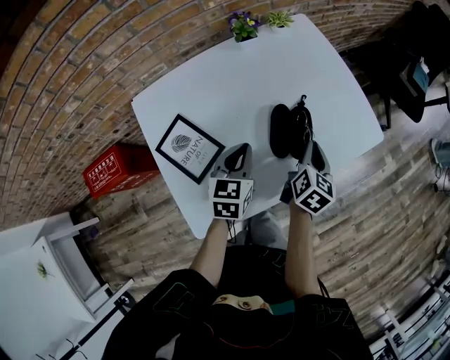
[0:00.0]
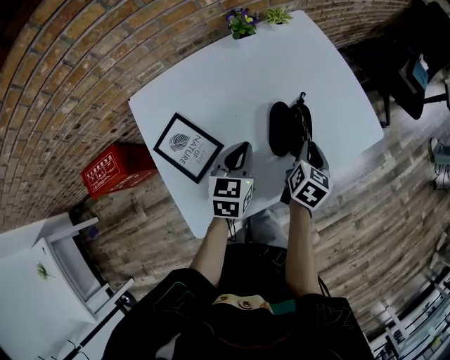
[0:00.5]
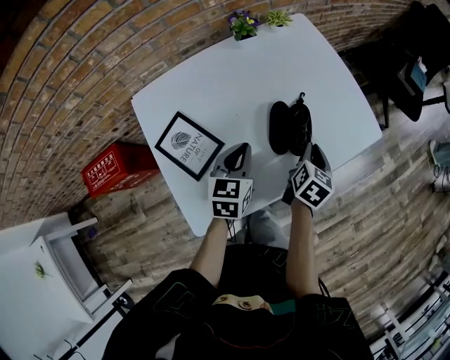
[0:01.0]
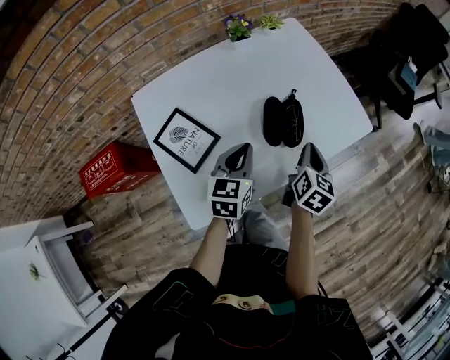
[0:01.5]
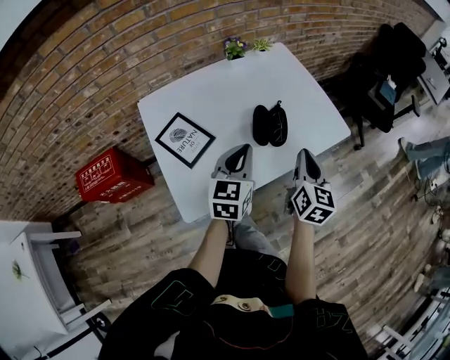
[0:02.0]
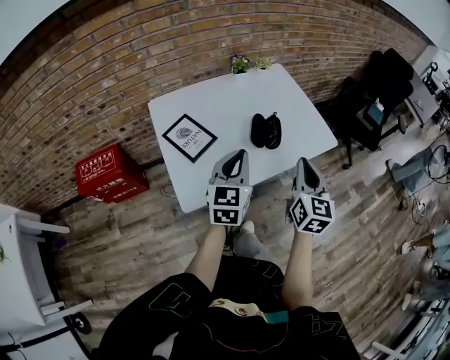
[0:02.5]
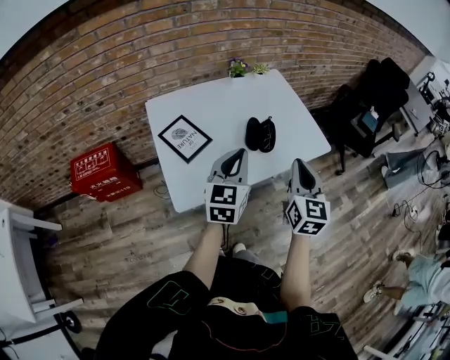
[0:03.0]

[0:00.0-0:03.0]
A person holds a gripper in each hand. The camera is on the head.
0:00.0 to 0:01.5: The left gripper changes place by about 5 cm. Meanwhile the right gripper ends up approximately 5 cm from where it was.
0:01.5 to 0:03.0: The grippers both shift upward and backward by some 20 cm. The left gripper turns by about 20 degrees. Meanwhile the right gripper turns by some 40 degrees.

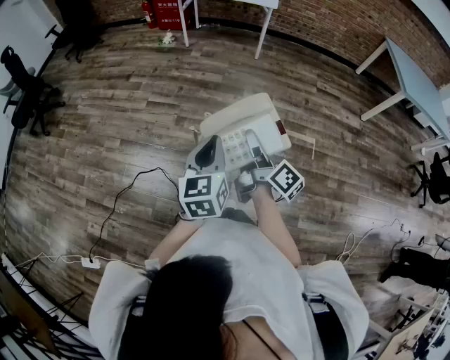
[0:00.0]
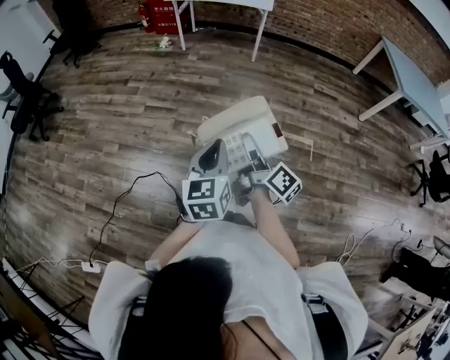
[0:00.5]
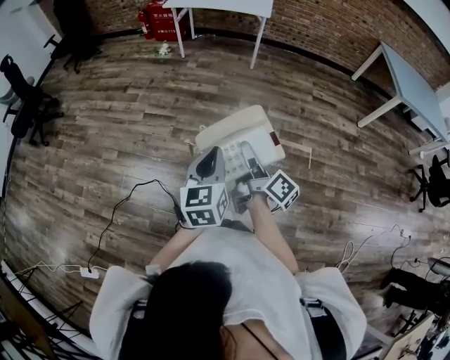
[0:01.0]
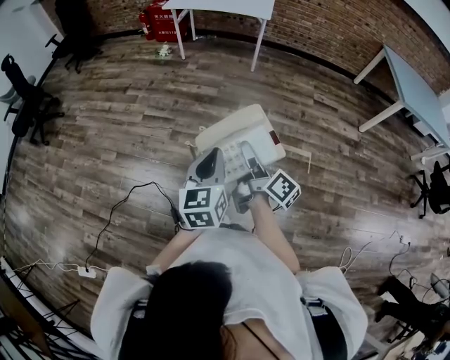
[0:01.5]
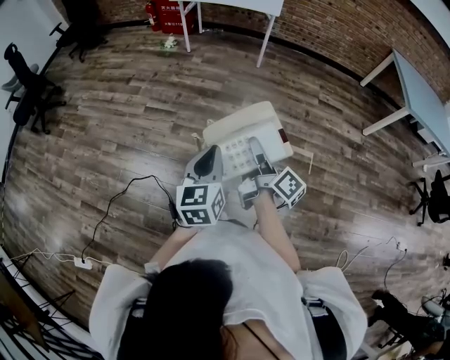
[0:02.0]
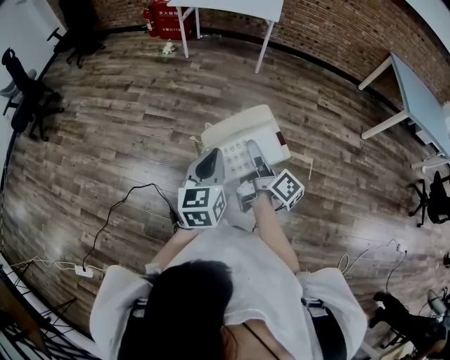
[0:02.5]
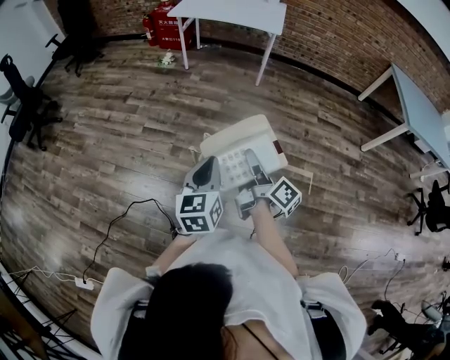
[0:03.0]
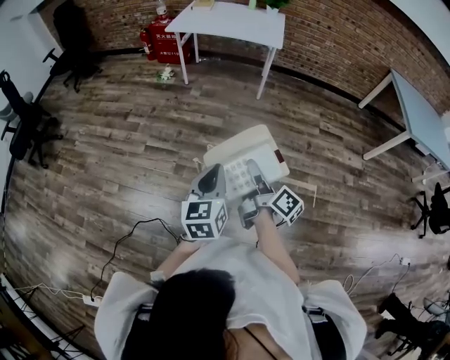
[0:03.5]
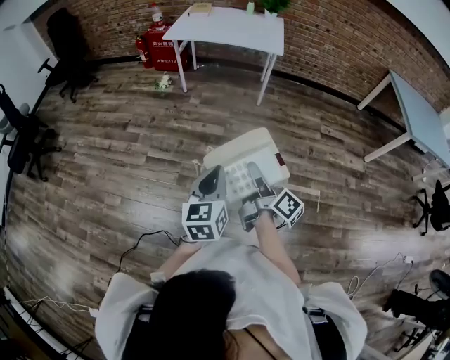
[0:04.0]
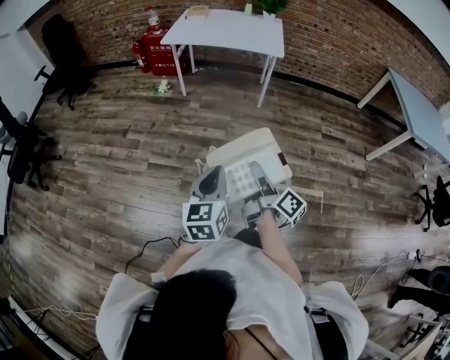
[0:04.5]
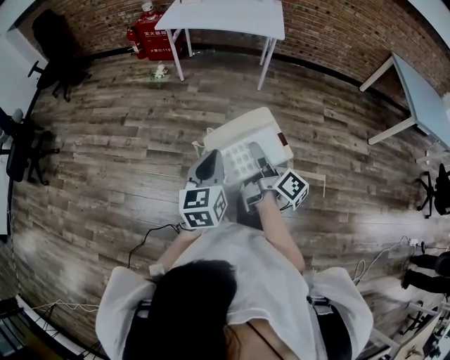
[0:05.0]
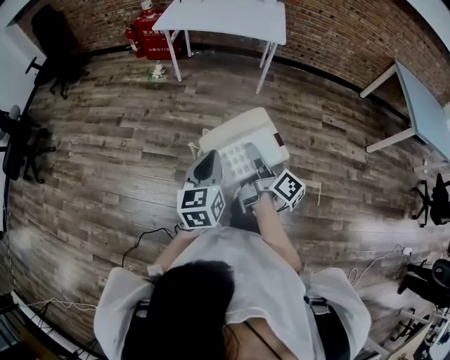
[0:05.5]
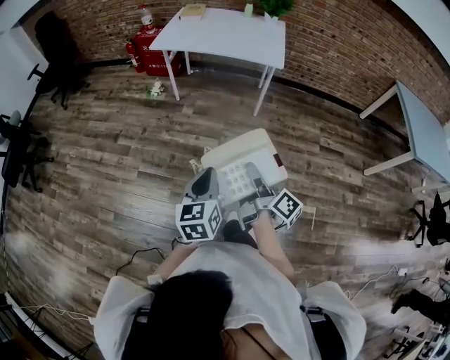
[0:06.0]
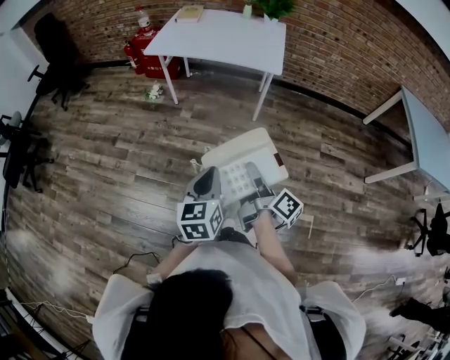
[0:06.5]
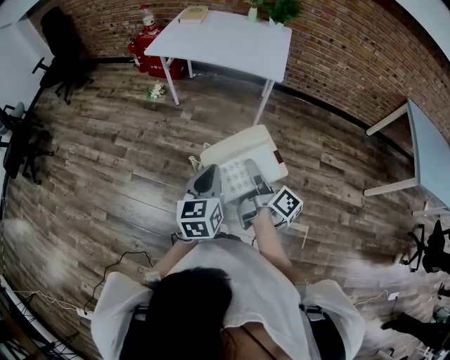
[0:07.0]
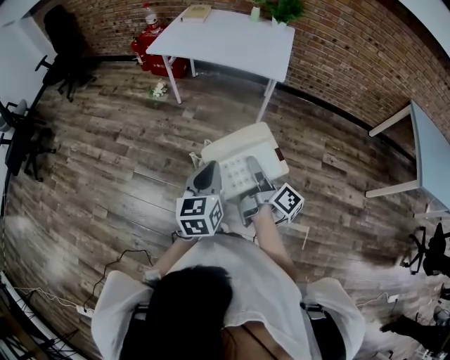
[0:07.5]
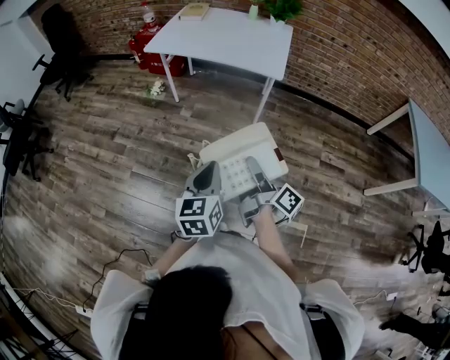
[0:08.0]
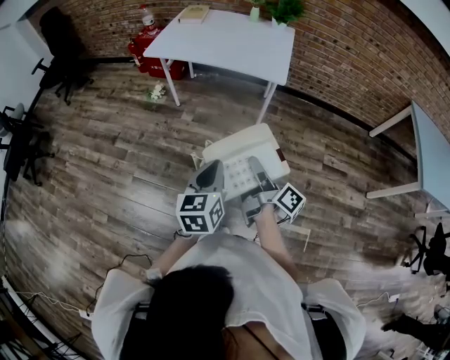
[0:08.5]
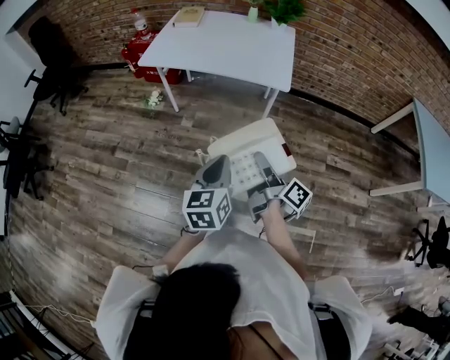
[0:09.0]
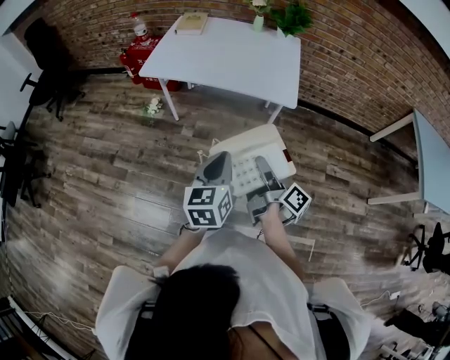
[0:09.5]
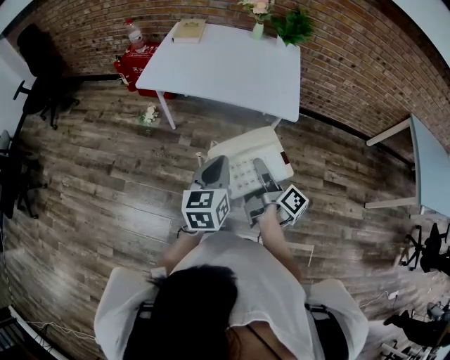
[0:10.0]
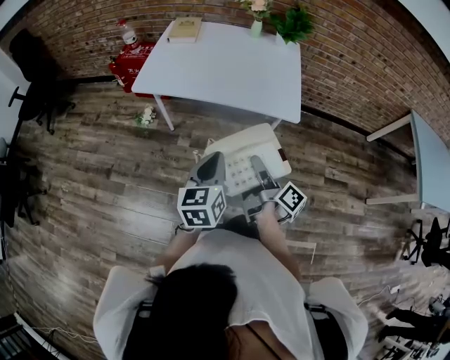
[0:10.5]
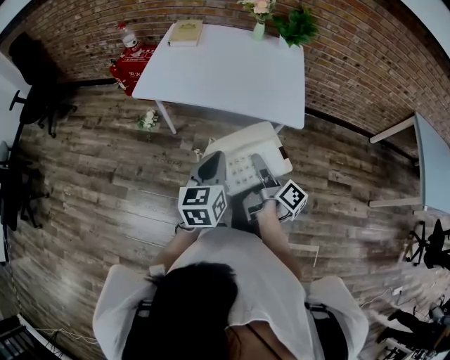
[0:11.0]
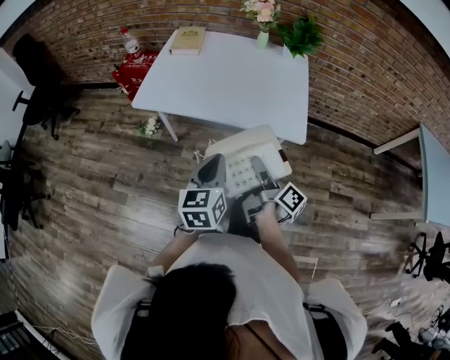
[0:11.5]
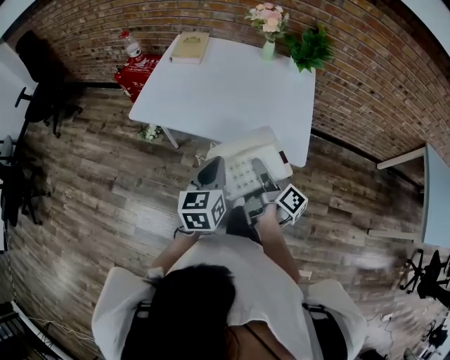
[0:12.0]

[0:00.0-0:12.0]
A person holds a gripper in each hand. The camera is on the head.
0:00.0 to 0:02.0: The left gripper ends up roughly 10 cm from where it was.
0:02.0 to 0:04.0: The left gripper ends up roughly 25 cm from where it was.
0:04.0 to 0:06.0: The left gripper shifts by roughly 20 cm.
0:06.0 to 0:08.0: The left gripper moves roughly 15 cm.
0:08.0 to 0:10.0: The left gripper ends up some 30 cm from where it was.
0:10.0 to 0:12.0: The left gripper ends up roughly 20 cm from where it was.

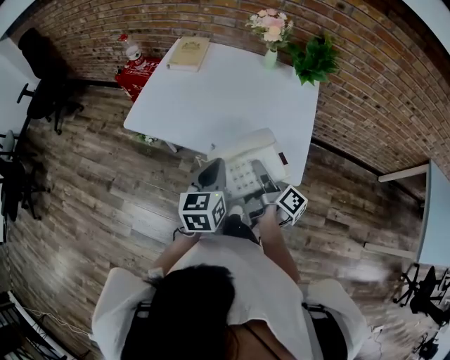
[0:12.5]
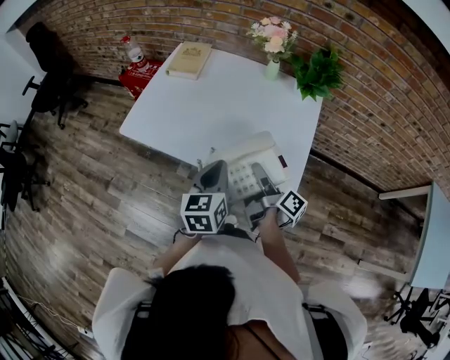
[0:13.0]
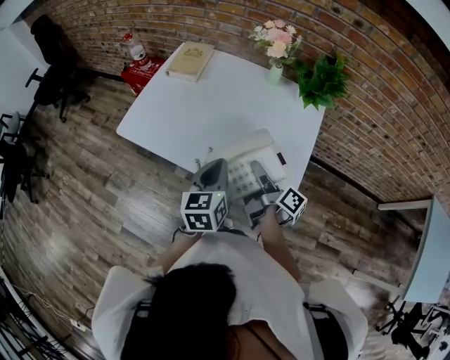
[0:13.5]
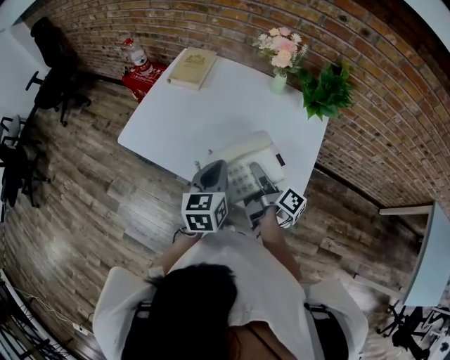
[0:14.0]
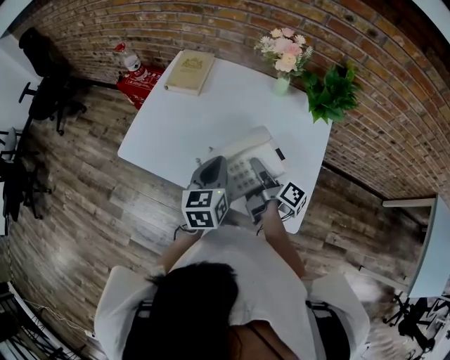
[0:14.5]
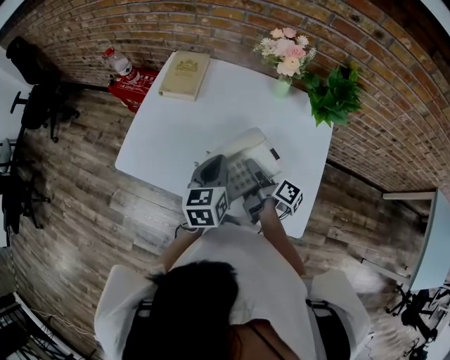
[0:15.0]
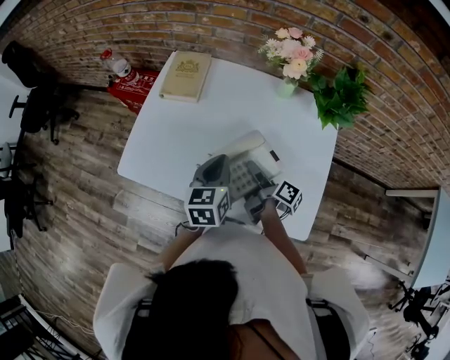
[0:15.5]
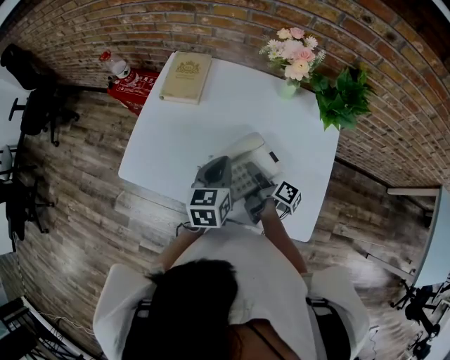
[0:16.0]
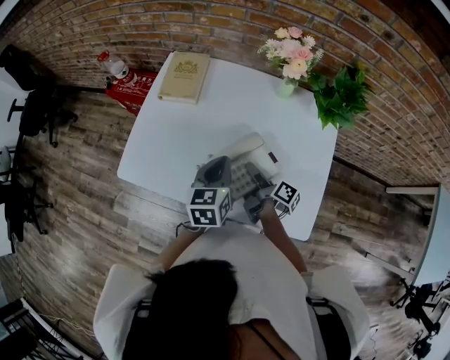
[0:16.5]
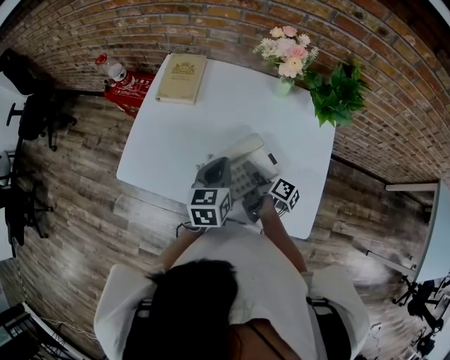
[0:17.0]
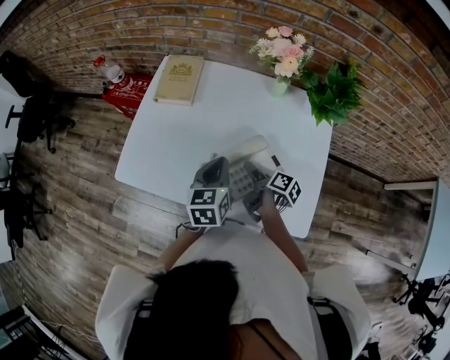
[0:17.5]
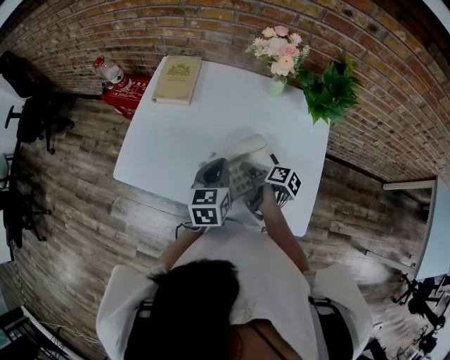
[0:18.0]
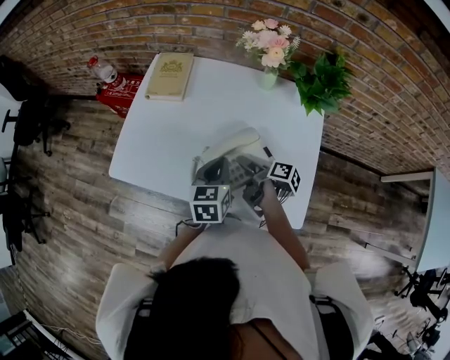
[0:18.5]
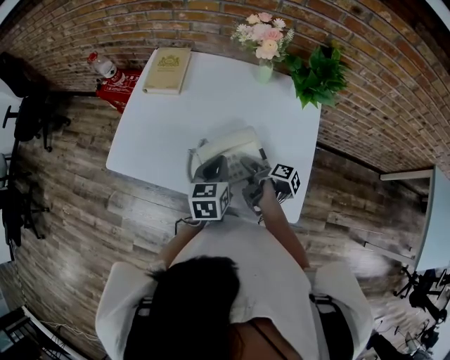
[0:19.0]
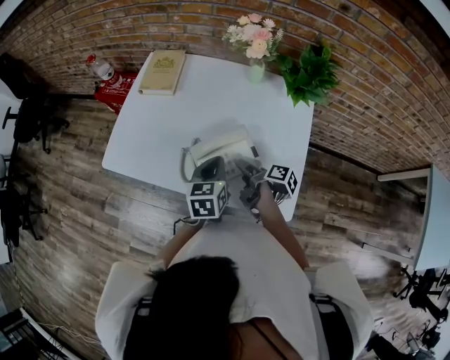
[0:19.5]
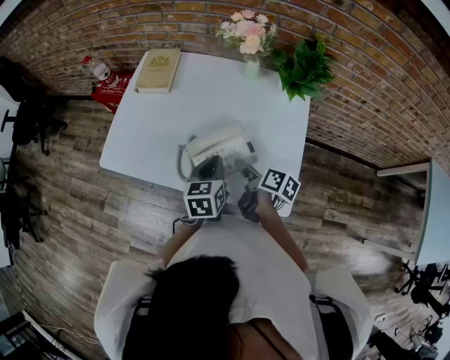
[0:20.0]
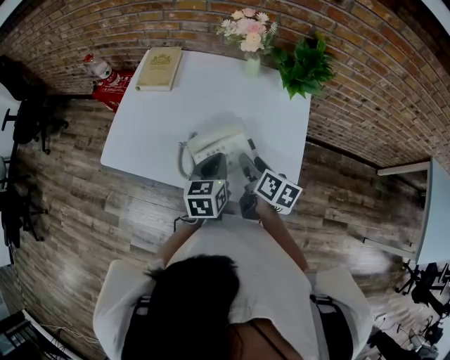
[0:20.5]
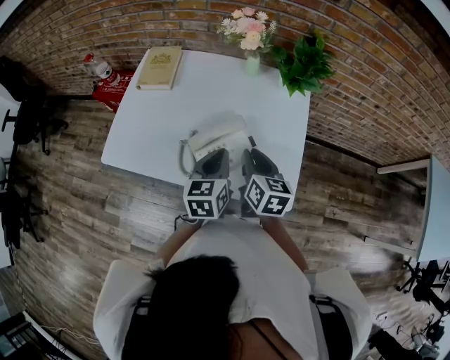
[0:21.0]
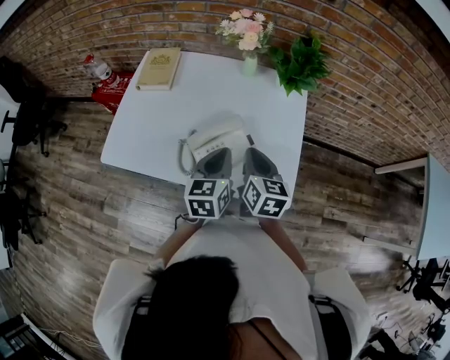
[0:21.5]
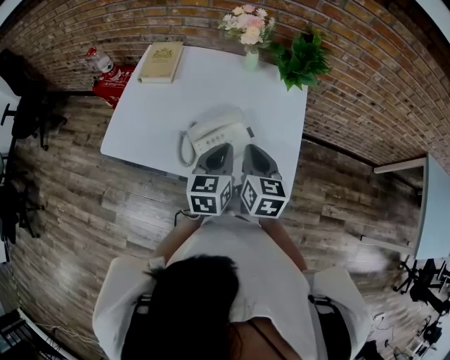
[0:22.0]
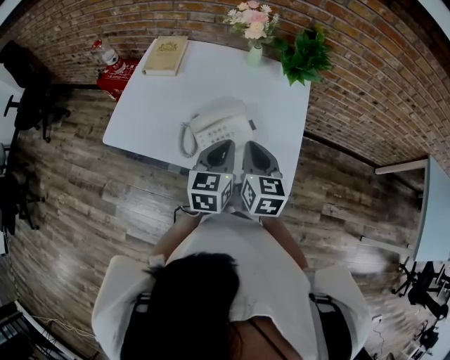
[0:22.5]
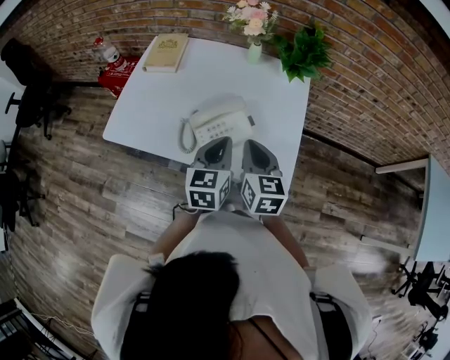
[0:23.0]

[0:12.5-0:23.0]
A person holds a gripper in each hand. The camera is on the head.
0:12.5 to 0:14.5: The left gripper moves approximately 20 cm.
0:14.5 to 0:16.5: The left gripper moves roughly 10 cm.
0:16.5 to 0:19.0: The left gripper shifts by roughly 10 cm.
0:19.0 to 0:21.0: The left gripper moves about 5 cm.
0:21.0 to 0:23.0: The left gripper moves roughly 5 cm.

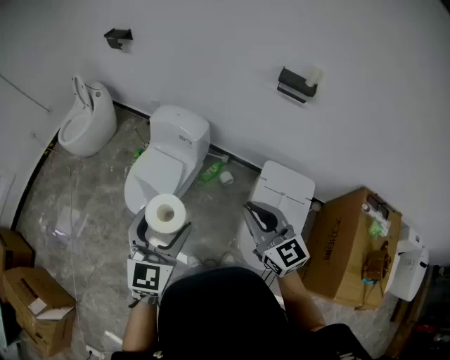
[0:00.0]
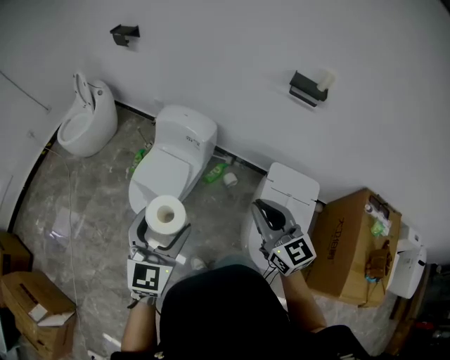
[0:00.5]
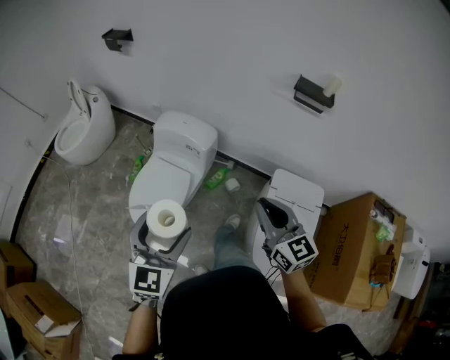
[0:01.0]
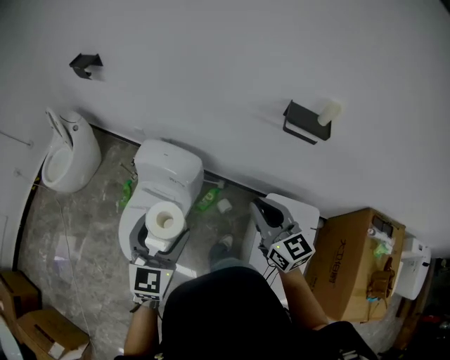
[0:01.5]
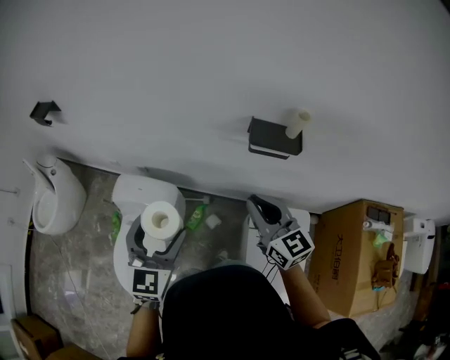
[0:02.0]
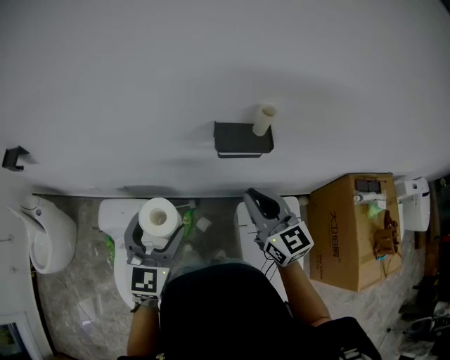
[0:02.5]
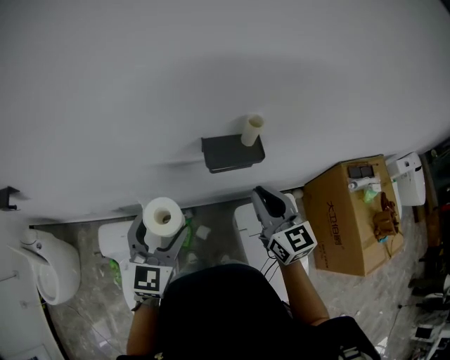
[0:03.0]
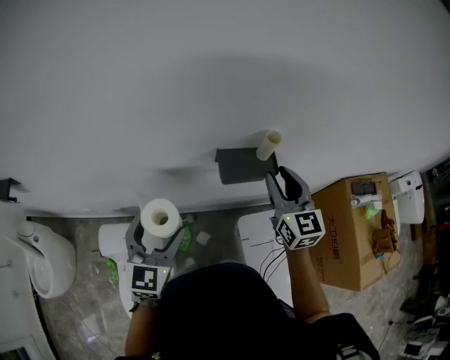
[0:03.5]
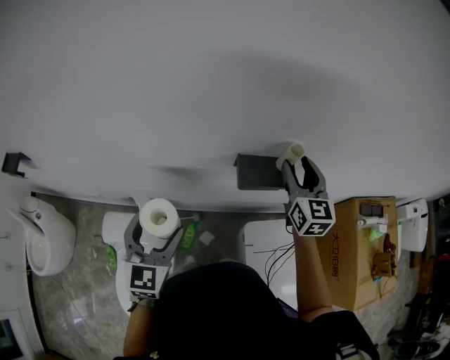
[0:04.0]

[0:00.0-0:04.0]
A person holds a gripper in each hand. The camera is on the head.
0:00.0 to 0:02.0: The pair of grippers is taken forward, roughly 40 cm.
0:02.0 to 0:04.0: The right gripper moves some 25 cm, changes its angle by roughly 40 degrees, and opens; the left gripper changes place by roughly 20 cm.
